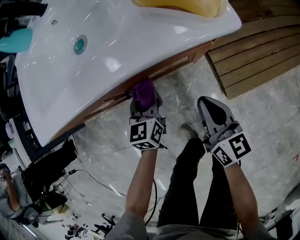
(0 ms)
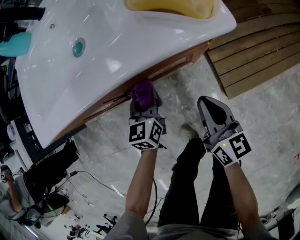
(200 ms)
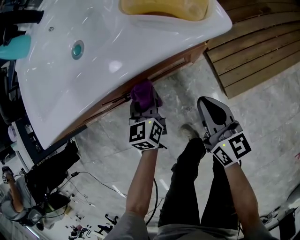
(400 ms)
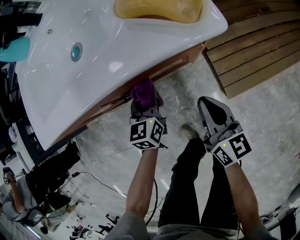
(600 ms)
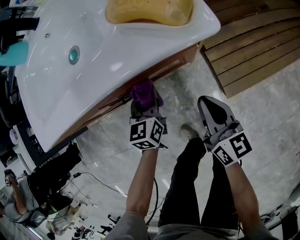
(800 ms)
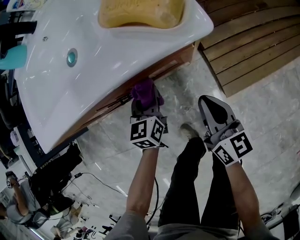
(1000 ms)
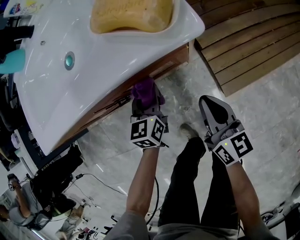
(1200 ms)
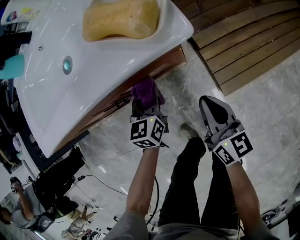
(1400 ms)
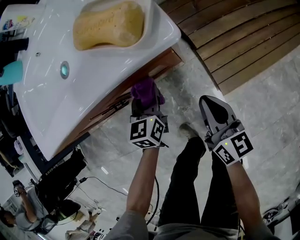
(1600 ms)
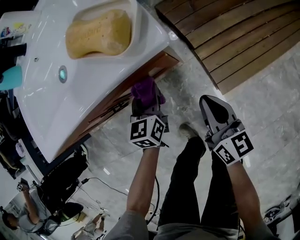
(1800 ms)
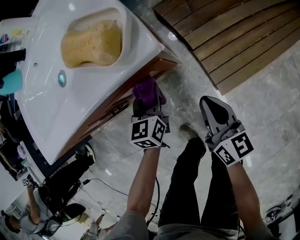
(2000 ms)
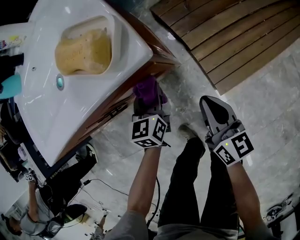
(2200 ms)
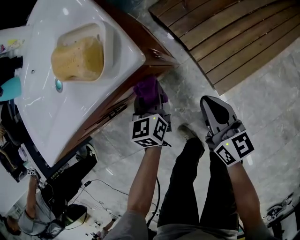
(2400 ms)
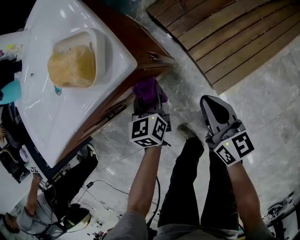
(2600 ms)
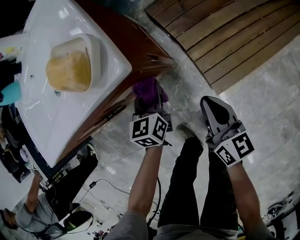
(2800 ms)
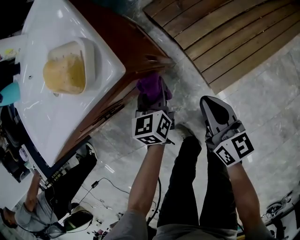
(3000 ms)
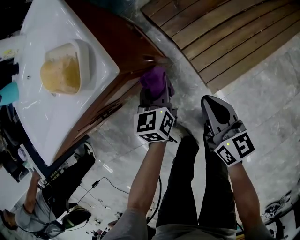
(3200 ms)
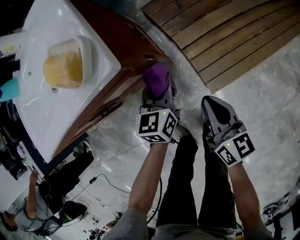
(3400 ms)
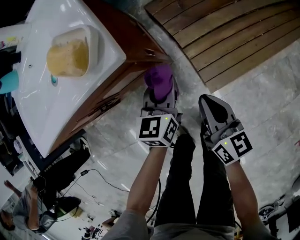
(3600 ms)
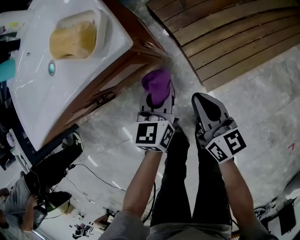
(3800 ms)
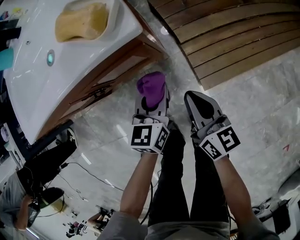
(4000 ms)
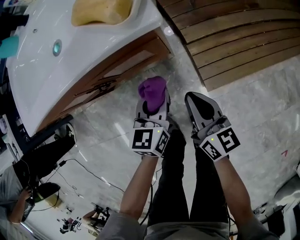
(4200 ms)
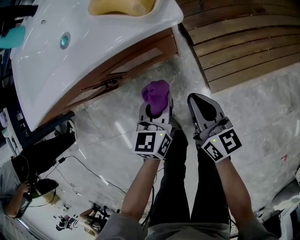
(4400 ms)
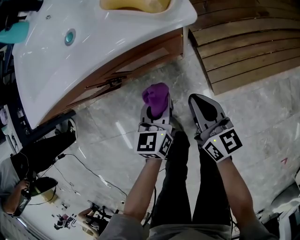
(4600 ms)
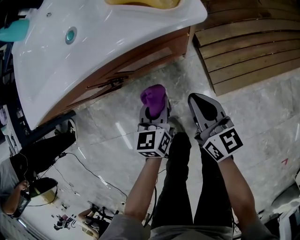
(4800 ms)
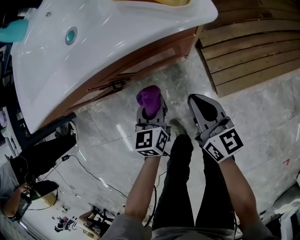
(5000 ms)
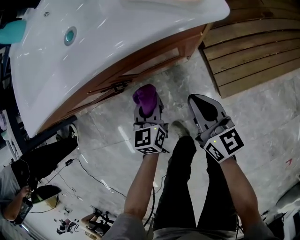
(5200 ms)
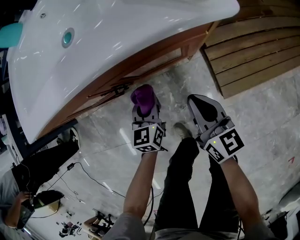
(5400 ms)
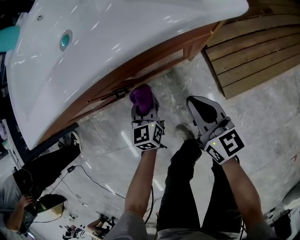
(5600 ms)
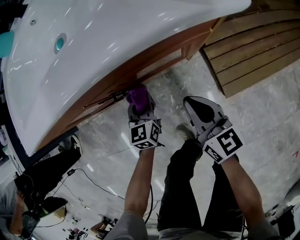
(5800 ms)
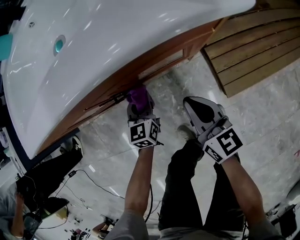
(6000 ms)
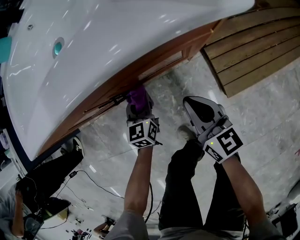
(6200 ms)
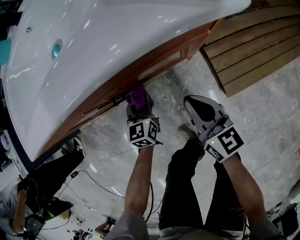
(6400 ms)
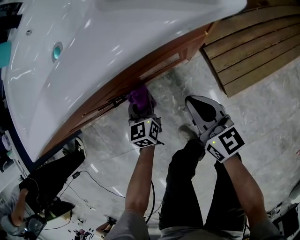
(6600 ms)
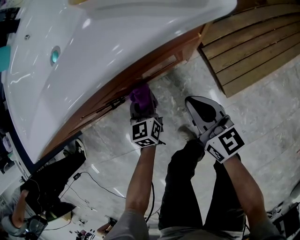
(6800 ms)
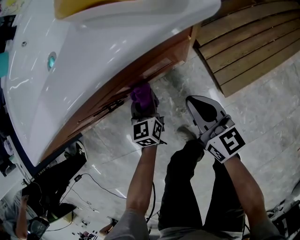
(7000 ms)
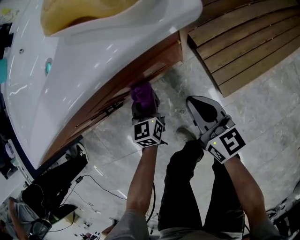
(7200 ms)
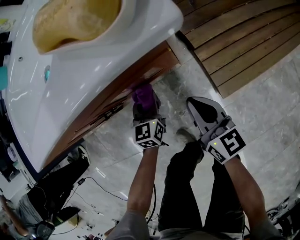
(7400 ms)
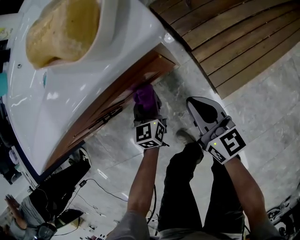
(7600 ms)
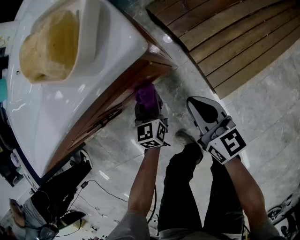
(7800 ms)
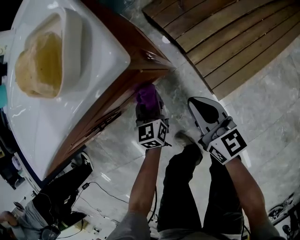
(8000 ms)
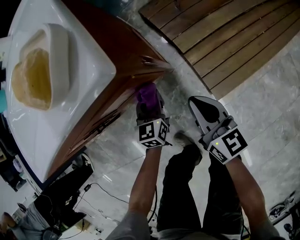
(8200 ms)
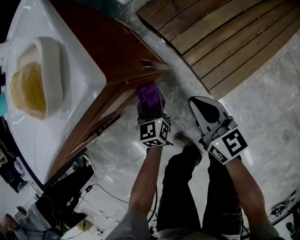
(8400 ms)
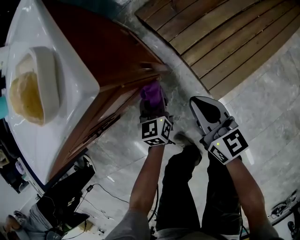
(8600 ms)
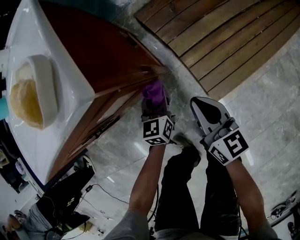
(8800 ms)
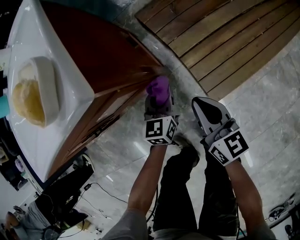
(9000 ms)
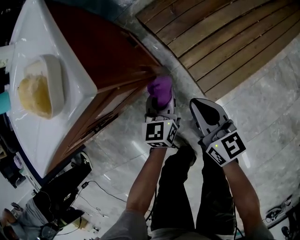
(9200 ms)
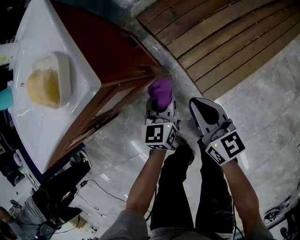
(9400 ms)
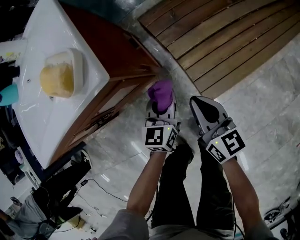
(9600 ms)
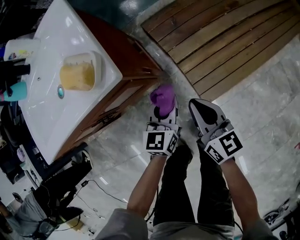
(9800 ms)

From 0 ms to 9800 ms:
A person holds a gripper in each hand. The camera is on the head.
From 0 ms to 1400 ms: The grippers both shift to the right by about 5 cm.
From 1400 ms to 2800 ms: The two grippers go approximately 10 cm to the right.
From 2800 ms to 4200 ms: The right gripper goes roughly 5 cm to the left; the left gripper shifts roughly 10 cm backward and upward.
From 4200 ms to 5600 ms: The left gripper heads to the left and downward, covering approximately 20 cm; the right gripper heads to the left and downward, covering some 10 cm.
From 5600 ms to 7000 ms: The left gripper ends up approximately 5 cm from where it was.
From 7000 ms to 8400 ms: Both grippers travel together to the right, about 10 cm.
From 8400 ms to 9800 ms: The left gripper is displaced upward and to the right by about 20 cm. The right gripper shifts approximately 10 cm upward.

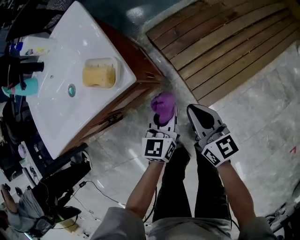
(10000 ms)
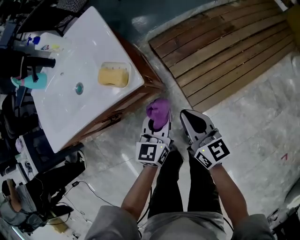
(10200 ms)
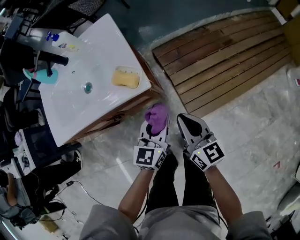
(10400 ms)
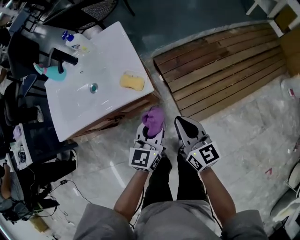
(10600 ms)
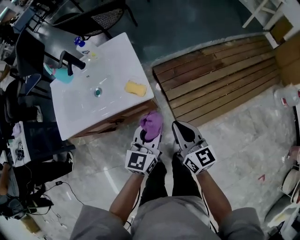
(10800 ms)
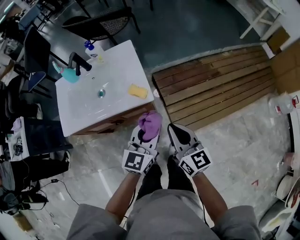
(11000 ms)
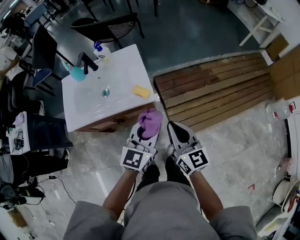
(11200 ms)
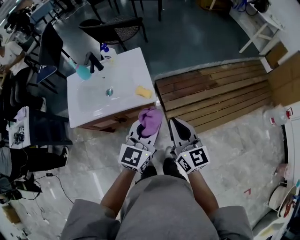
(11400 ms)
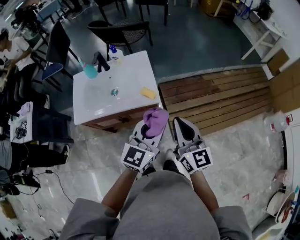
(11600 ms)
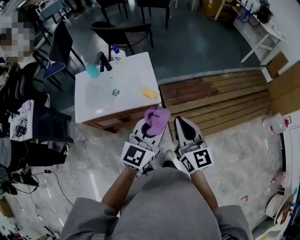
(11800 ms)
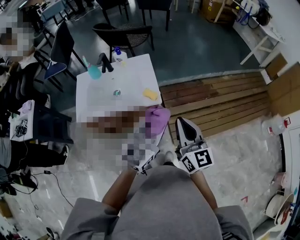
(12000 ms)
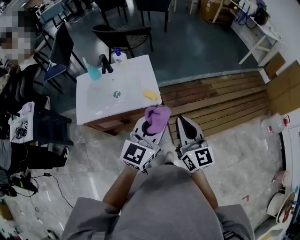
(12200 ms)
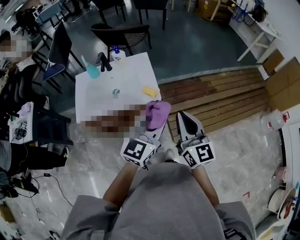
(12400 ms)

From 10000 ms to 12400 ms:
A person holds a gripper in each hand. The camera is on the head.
From 10000 ms to 11200 ms: Both grippers move upward, roughly 35 cm.
From 11200 ms to 12400 ms: The grippers both shift upward by roughly 10 cm.

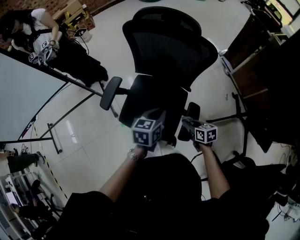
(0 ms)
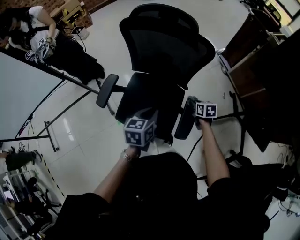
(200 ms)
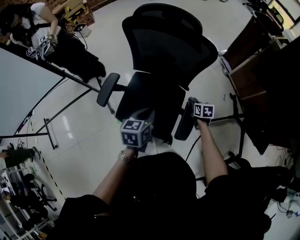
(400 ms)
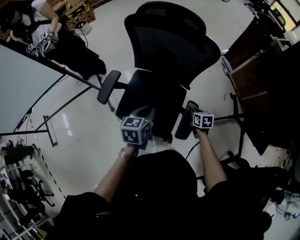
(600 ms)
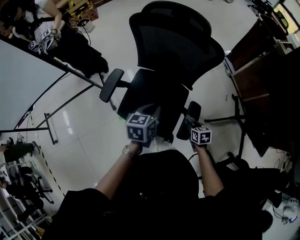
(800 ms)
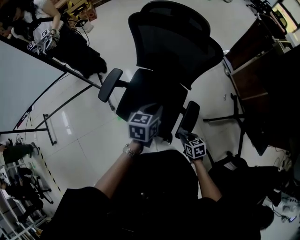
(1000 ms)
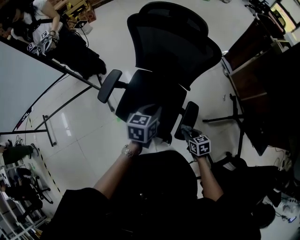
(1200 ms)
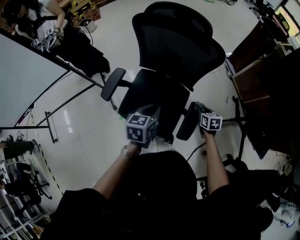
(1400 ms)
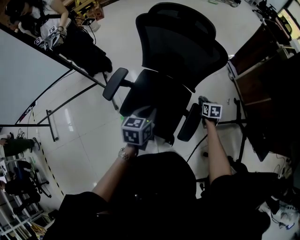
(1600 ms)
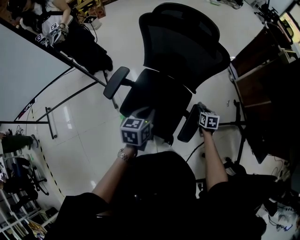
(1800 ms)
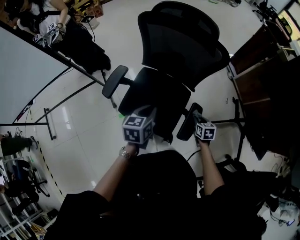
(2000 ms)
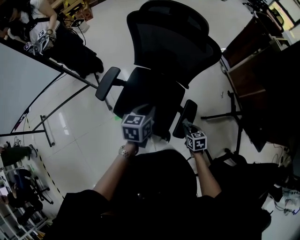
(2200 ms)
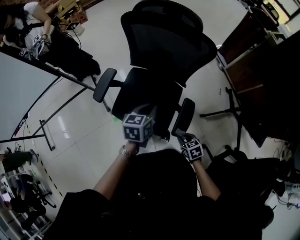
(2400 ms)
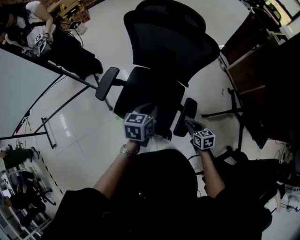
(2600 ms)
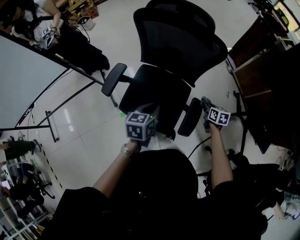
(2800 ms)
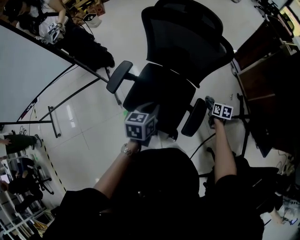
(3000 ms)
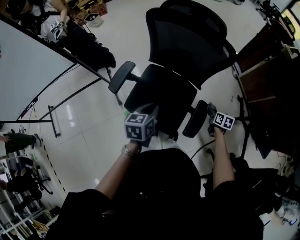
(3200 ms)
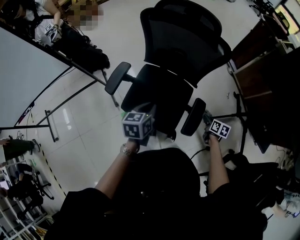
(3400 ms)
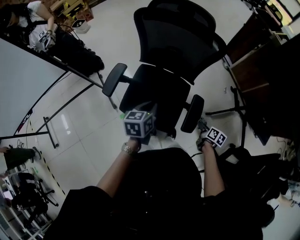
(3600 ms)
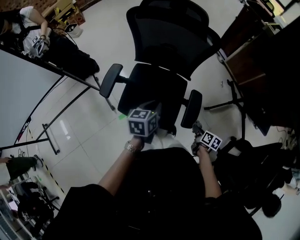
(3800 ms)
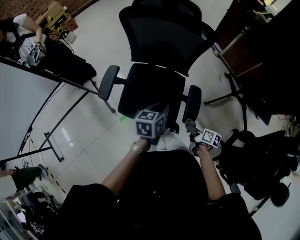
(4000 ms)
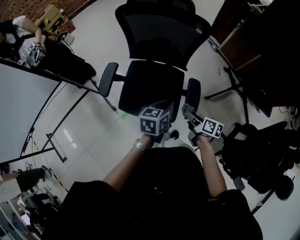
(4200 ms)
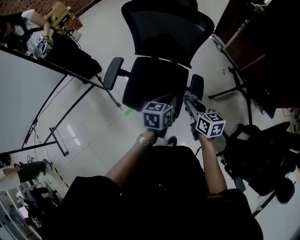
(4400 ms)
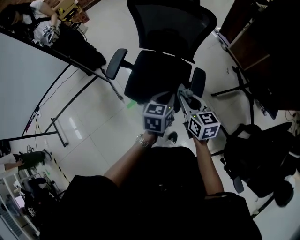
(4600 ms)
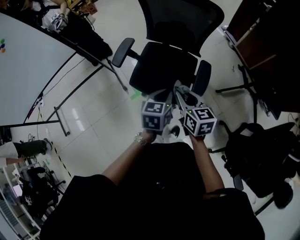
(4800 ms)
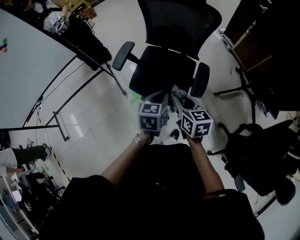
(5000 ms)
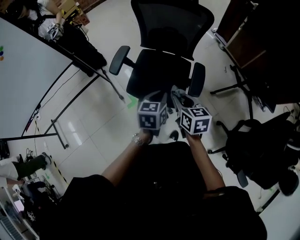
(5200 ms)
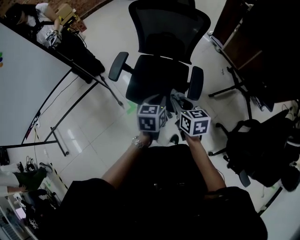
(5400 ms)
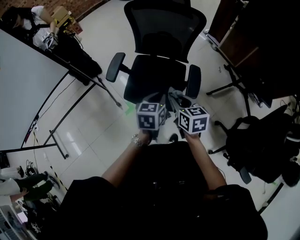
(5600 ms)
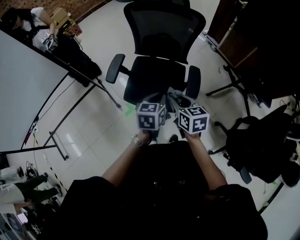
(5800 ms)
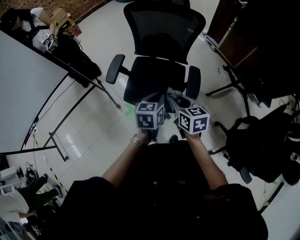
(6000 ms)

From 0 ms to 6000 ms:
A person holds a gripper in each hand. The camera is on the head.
From 0 ms to 1600 ms: The right gripper moves forward and backward over about 20 cm, changing direction 2 times, and swivels roughly 20 degrees; the left gripper is displaced to the left by about 5 cm.
From 1600 ms to 3000 ms: The right gripper travels backward and back again, some 25 cm each way.
From 3000 ms to 4400 ms: The left gripper shifts about 10 cm to the right and backward. Meanwhile the right gripper moves upward, backward and to the left, roughly 30 cm, and changes its angle by roughly 20 degrees.
From 4400 ms to 6000 ms: The two grippers go roughly 10 cm to the left and backward.

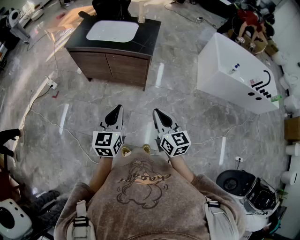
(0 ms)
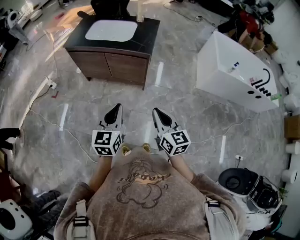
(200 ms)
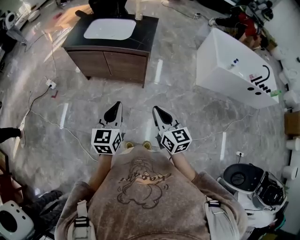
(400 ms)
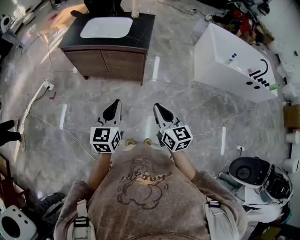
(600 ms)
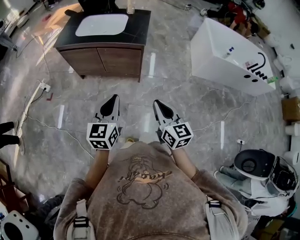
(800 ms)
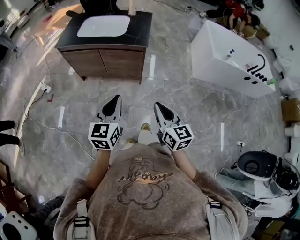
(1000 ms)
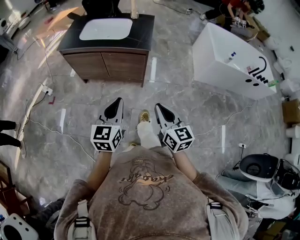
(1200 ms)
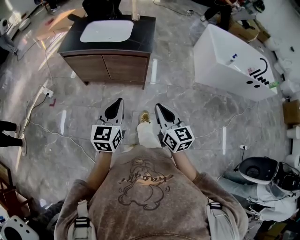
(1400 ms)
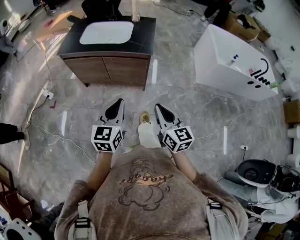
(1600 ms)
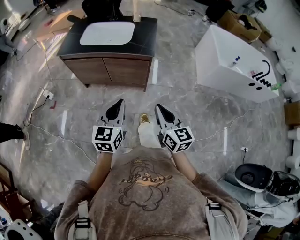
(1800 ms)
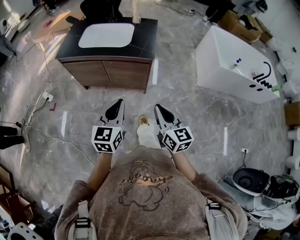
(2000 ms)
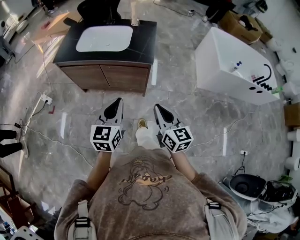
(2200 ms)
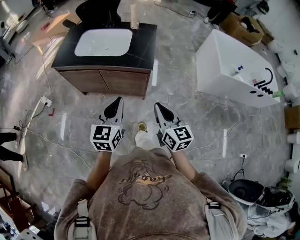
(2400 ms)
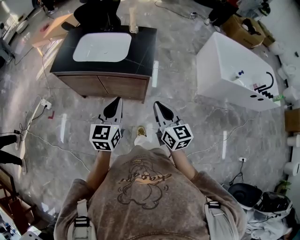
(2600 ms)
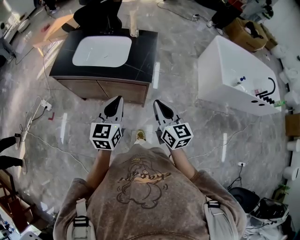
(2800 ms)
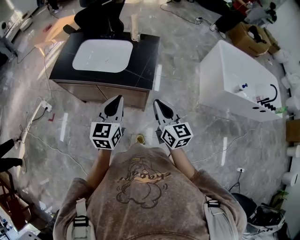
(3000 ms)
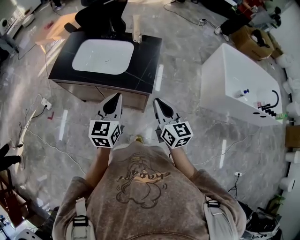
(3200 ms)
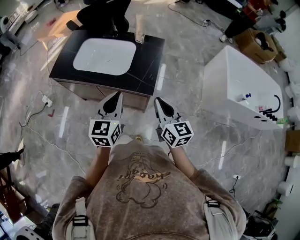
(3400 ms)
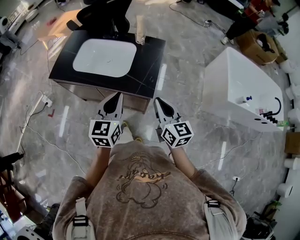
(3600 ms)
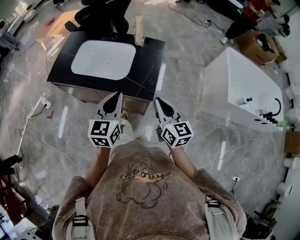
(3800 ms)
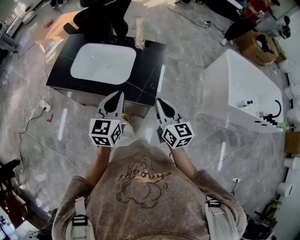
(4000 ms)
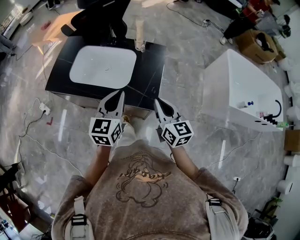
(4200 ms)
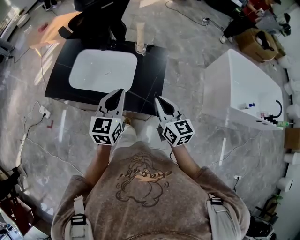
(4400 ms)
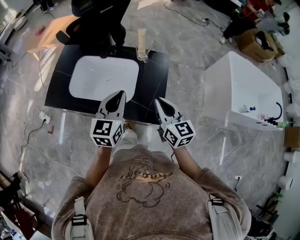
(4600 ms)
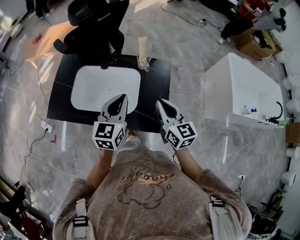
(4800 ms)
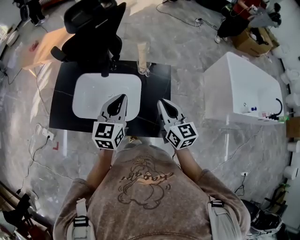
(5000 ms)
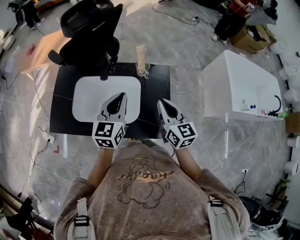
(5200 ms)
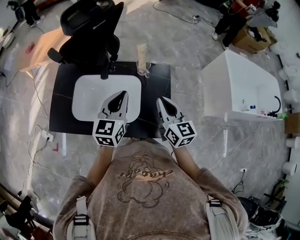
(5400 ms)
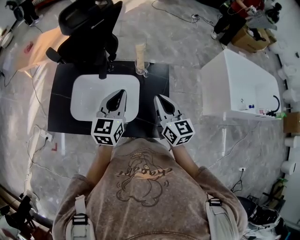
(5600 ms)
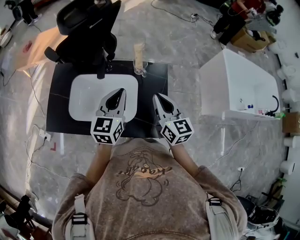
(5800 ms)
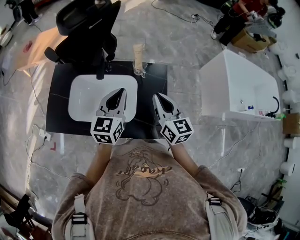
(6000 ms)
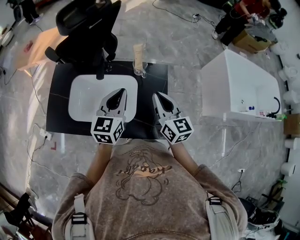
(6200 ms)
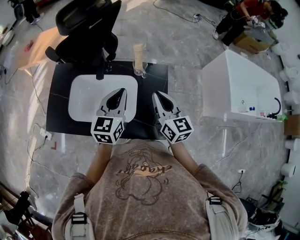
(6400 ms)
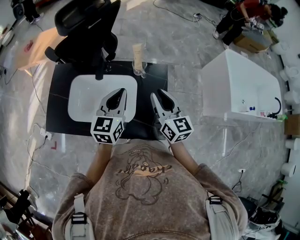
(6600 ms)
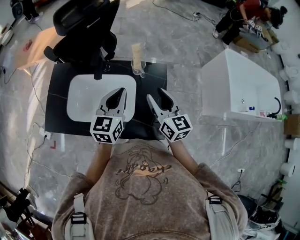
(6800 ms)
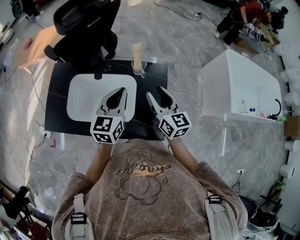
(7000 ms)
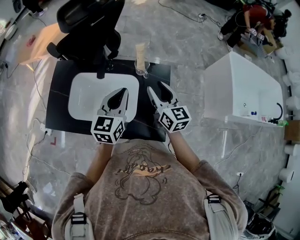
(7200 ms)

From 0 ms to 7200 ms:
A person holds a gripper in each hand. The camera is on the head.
From 0 ms to 1400 ms: The left gripper shifts by roughly 5 cm.
From 1400 ms to 2800 ms: Both grippers move forward, some 25 cm.
From 2800 ms to 4400 ms: The two grippers go approximately 25 cm forward.
From 4400 ms to 5800 ms: Both grippers travel together forward, about 15 cm.
From 5800 ms to 7200 ms: The right gripper goes approximately 5 cm forward, and opens up.
